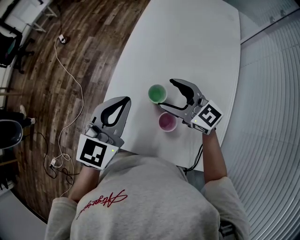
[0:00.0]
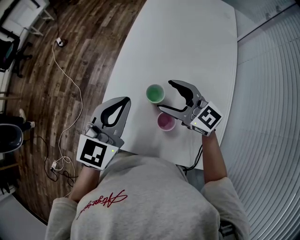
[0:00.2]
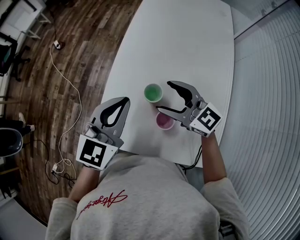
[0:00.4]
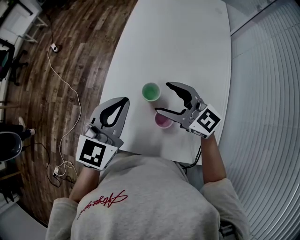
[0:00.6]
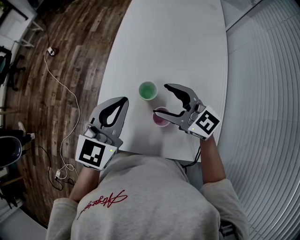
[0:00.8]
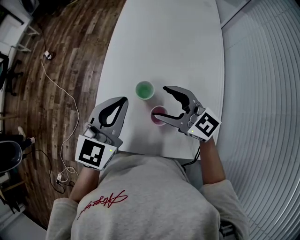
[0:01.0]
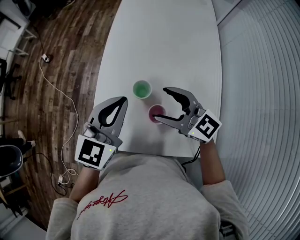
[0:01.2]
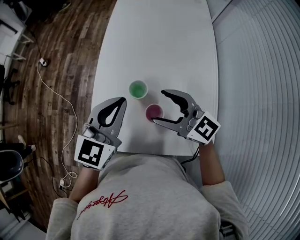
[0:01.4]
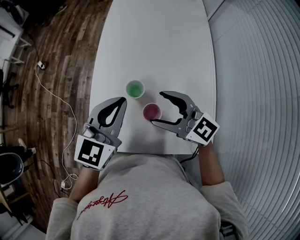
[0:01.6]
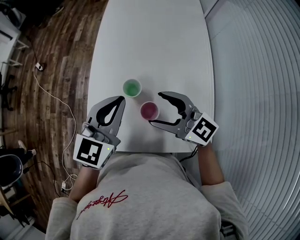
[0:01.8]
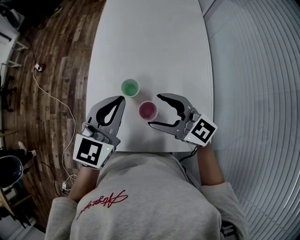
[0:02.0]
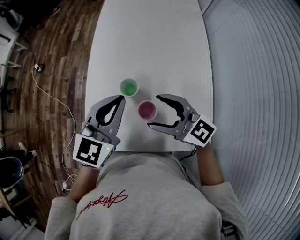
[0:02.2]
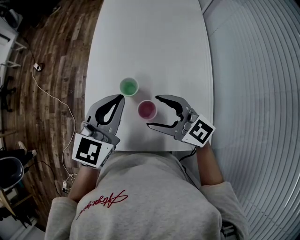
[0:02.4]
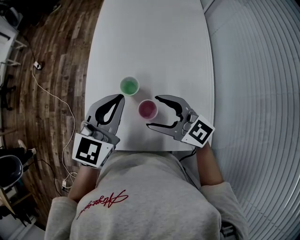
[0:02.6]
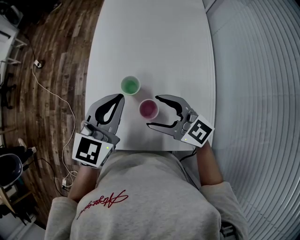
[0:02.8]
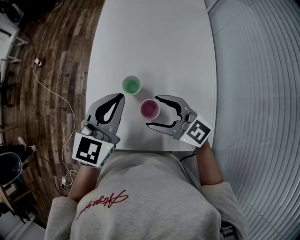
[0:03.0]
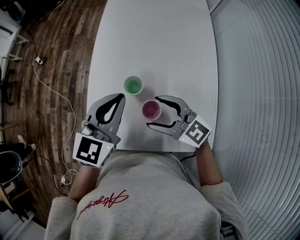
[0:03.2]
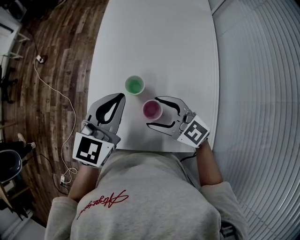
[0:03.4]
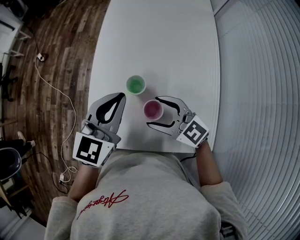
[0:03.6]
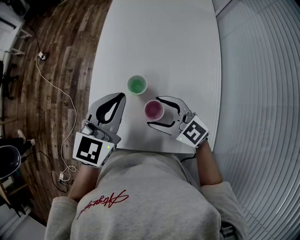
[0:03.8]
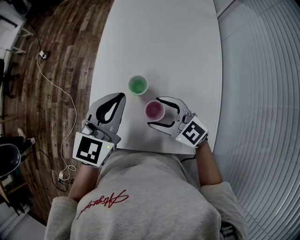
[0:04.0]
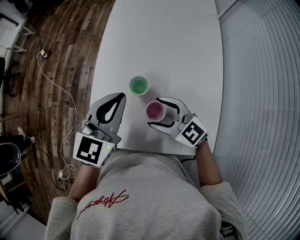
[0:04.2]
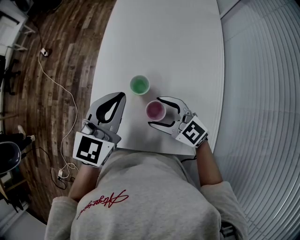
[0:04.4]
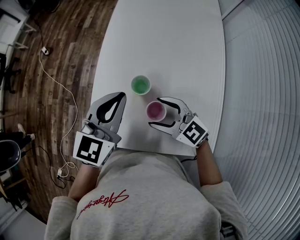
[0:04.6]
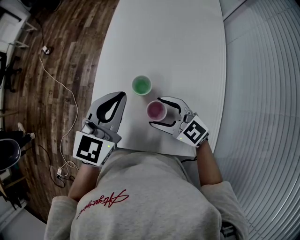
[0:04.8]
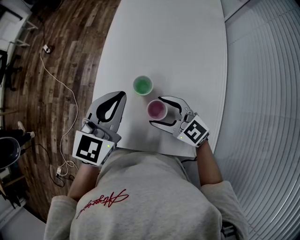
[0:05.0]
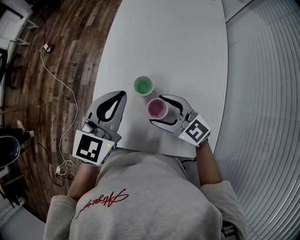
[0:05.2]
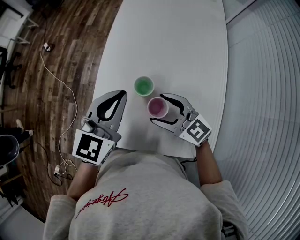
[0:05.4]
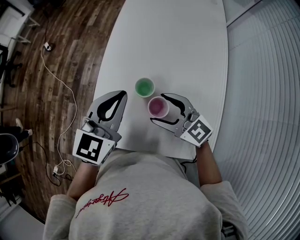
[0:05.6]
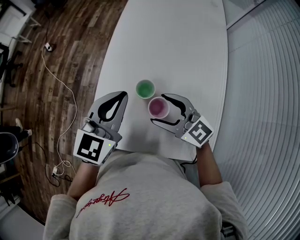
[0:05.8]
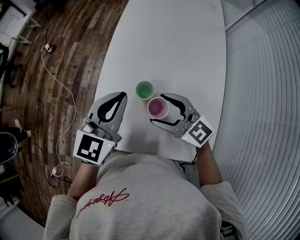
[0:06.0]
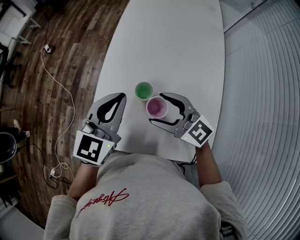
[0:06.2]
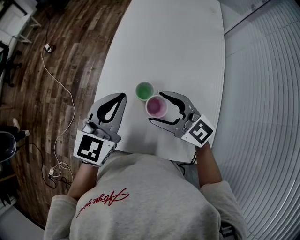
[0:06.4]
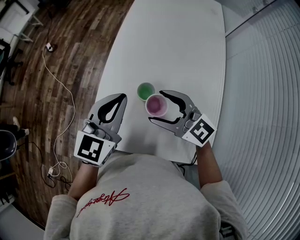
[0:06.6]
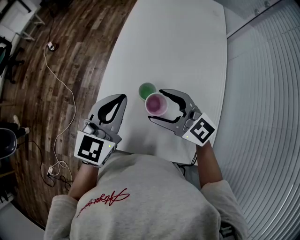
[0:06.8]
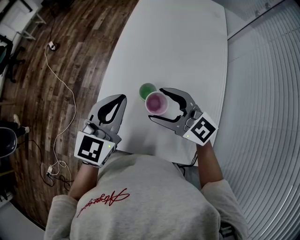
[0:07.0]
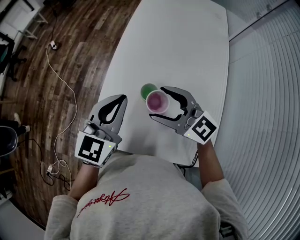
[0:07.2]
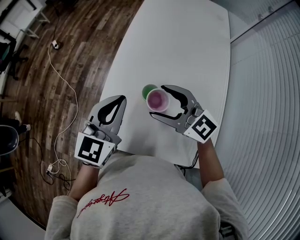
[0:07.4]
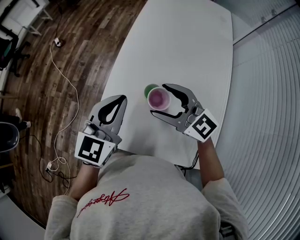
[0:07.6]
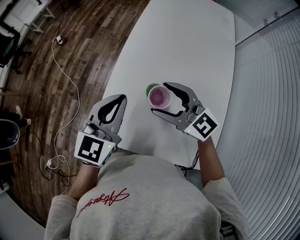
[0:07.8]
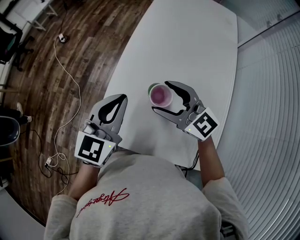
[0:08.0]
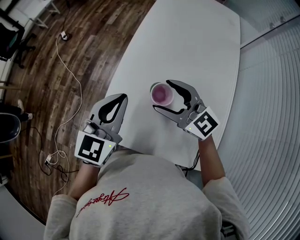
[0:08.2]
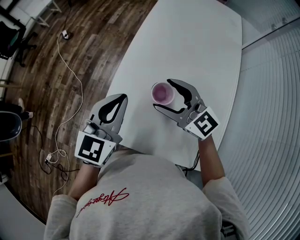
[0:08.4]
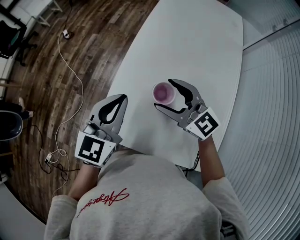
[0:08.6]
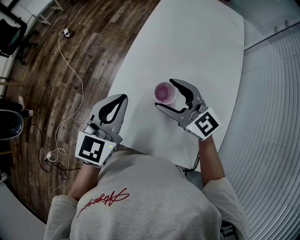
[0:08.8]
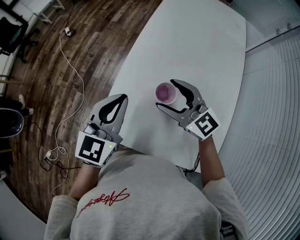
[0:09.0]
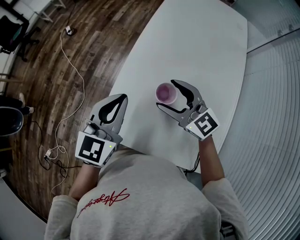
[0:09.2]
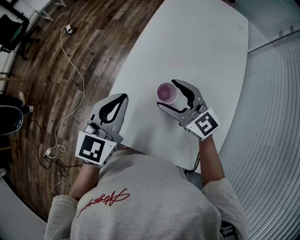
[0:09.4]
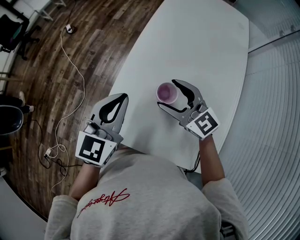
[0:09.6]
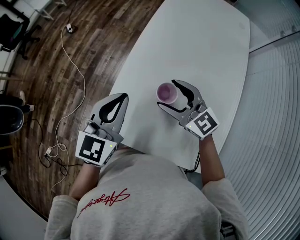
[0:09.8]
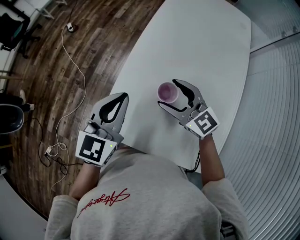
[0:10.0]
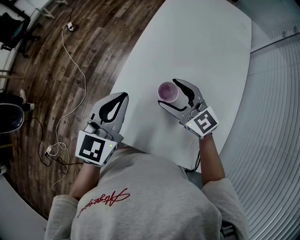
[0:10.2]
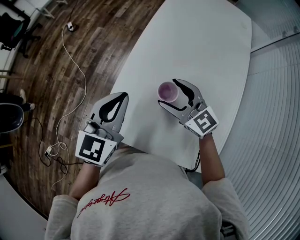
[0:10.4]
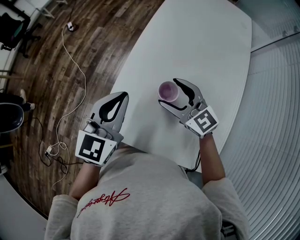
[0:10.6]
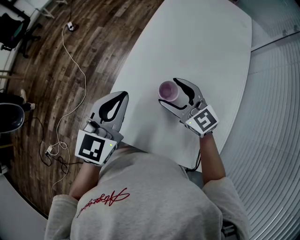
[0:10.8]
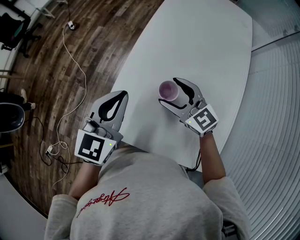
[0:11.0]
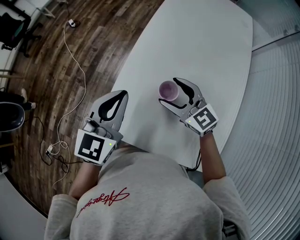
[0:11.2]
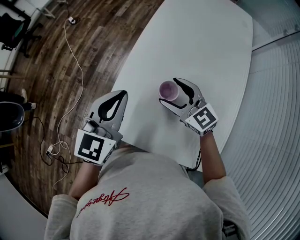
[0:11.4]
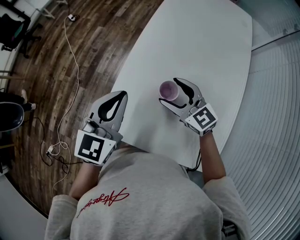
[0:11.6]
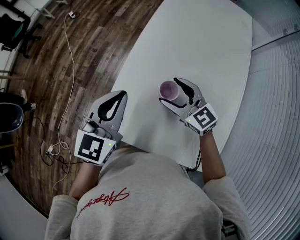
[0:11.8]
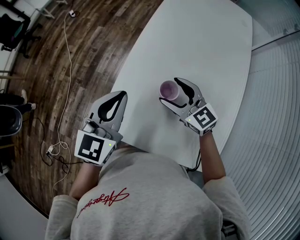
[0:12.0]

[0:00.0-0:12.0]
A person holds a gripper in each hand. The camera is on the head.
0:00.0 to 0:01.6: The left gripper shifts by some 5 cm. Meanwhile the right gripper moves backward, about 10 cm.
0:01.6 to 0:03.0: The grippers move only a little.
0:03.0 to 0:04.4: The right gripper ends up some 5 cm from where it was.
0:04.4 to 0:06.0: The right gripper is displaced upward by roughly 5 cm.
0:06.0 to 0:07.6: The right gripper heads upward, covering some 5 cm.
0:07.6 to 0:09.0: The grippers stay close to where they were, moving slightly.
0:09.0 to 0:10.4: There are only small adjustments of the grippers.
0:10.4 to 0:12.0: The grippers make only small movements.

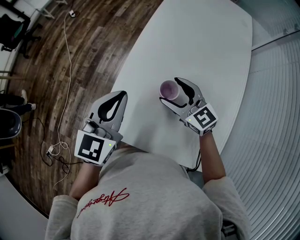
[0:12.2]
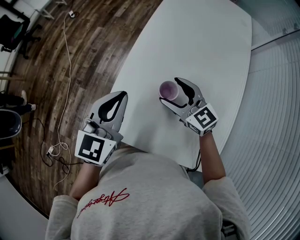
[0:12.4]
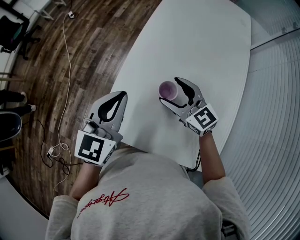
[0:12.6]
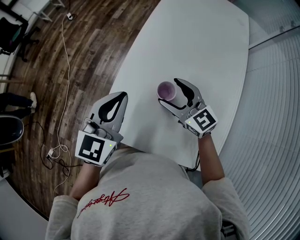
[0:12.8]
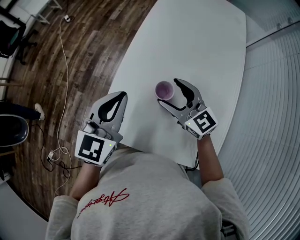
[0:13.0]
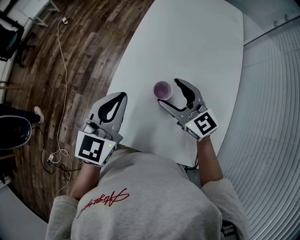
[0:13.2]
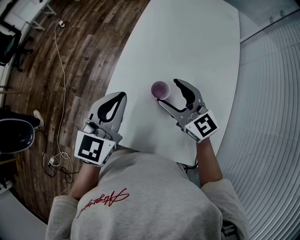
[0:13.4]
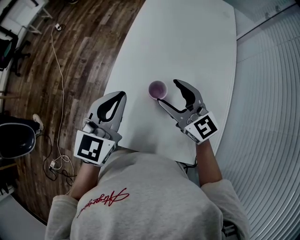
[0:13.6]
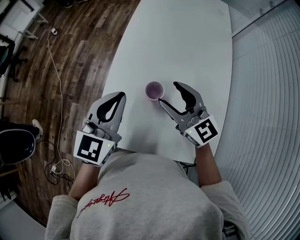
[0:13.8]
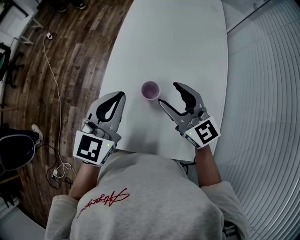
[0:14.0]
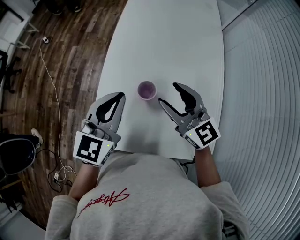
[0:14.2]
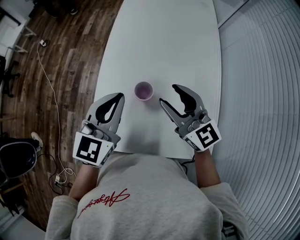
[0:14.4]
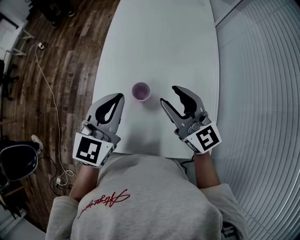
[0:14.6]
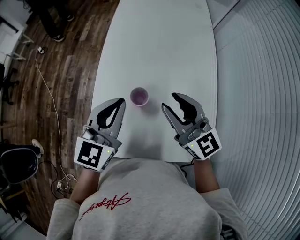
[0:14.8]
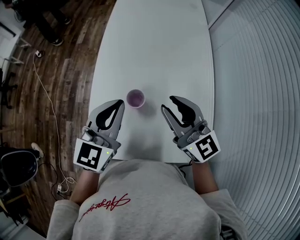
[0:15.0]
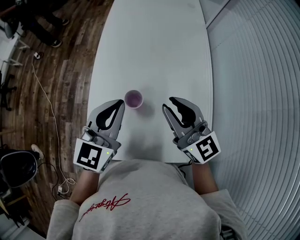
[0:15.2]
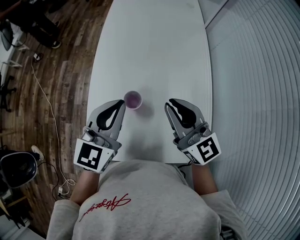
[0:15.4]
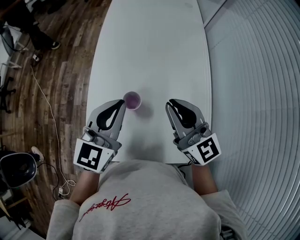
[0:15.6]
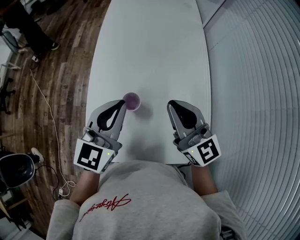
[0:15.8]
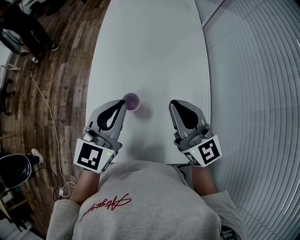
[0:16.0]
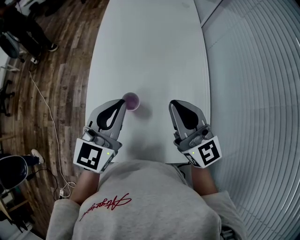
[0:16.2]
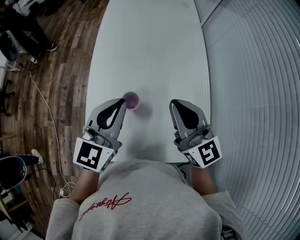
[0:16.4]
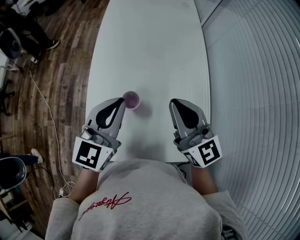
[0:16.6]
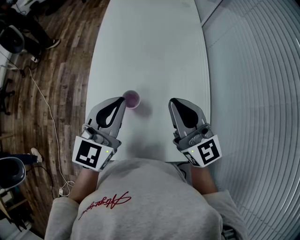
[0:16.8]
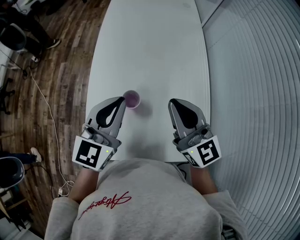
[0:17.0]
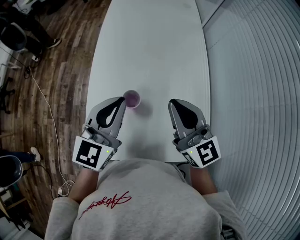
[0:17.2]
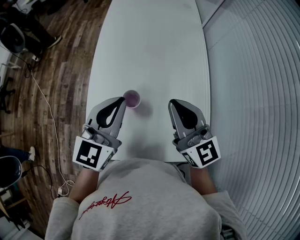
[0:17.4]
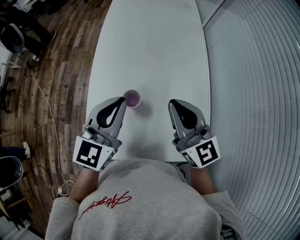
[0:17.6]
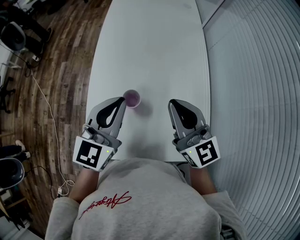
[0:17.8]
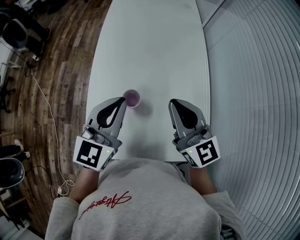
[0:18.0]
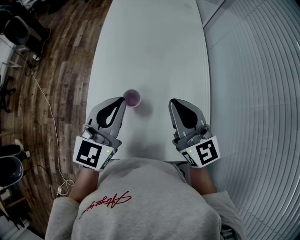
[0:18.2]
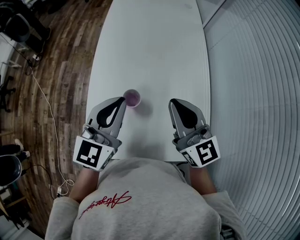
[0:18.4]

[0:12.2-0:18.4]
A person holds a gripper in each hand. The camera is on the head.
0:12.2 to 0:13.8: The right gripper shifts about 5 cm upward.
0:13.8 to 0:15.4: The left gripper is displaced to the right by approximately 5 cm; the right gripper heads to the right and upward, covering roughly 10 cm, and closes its fingers.
0:15.4 to 0:16.8: The grippers move only a little.
0:16.8 to 0:18.4: Both grippers stay about where they are.

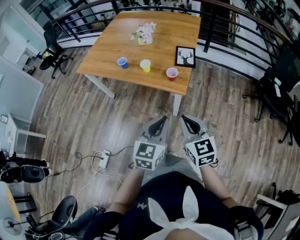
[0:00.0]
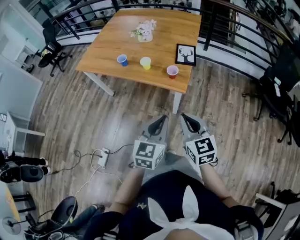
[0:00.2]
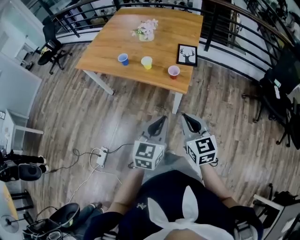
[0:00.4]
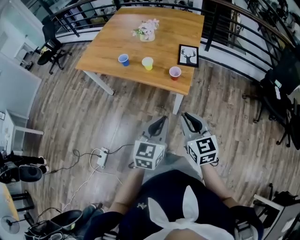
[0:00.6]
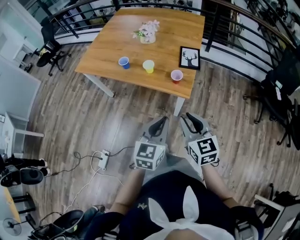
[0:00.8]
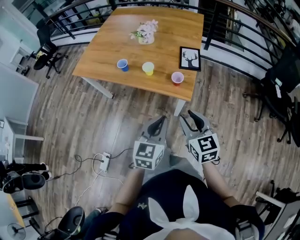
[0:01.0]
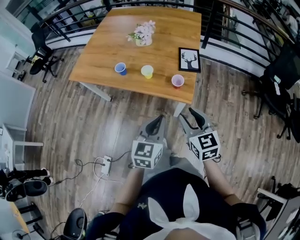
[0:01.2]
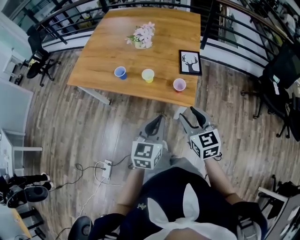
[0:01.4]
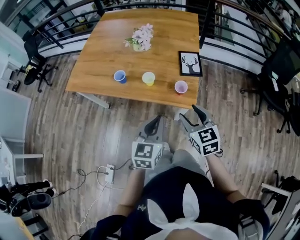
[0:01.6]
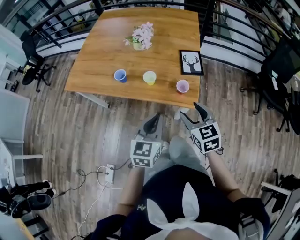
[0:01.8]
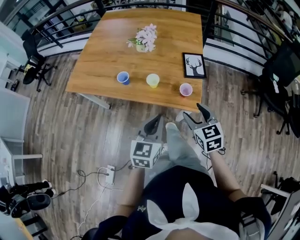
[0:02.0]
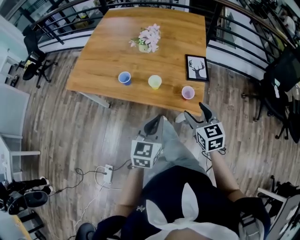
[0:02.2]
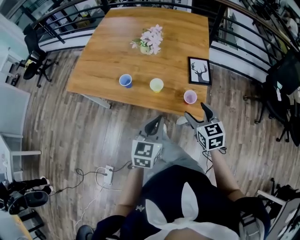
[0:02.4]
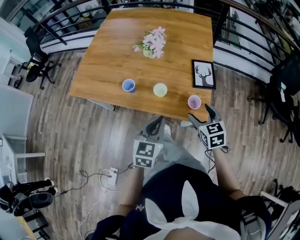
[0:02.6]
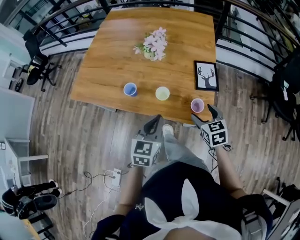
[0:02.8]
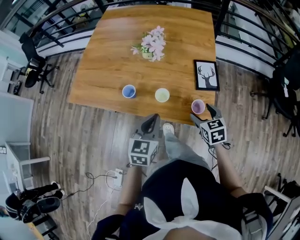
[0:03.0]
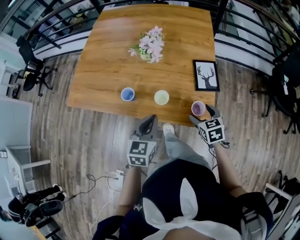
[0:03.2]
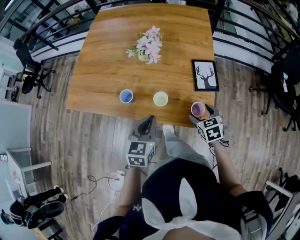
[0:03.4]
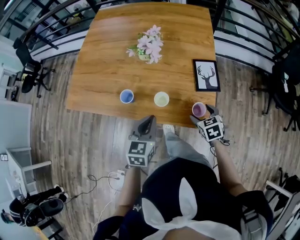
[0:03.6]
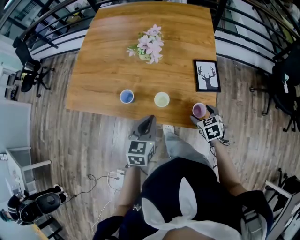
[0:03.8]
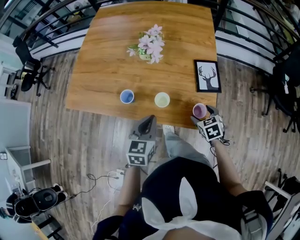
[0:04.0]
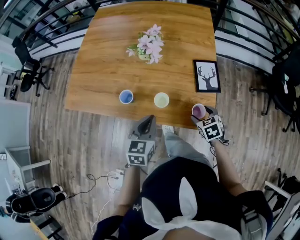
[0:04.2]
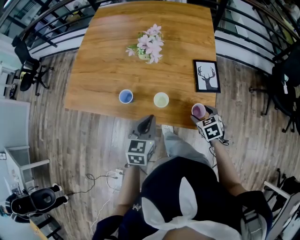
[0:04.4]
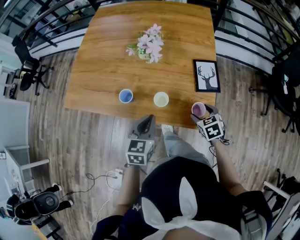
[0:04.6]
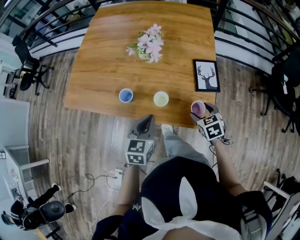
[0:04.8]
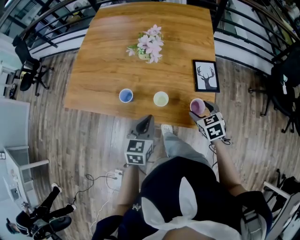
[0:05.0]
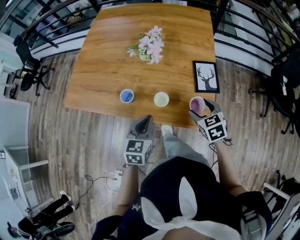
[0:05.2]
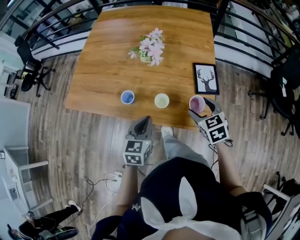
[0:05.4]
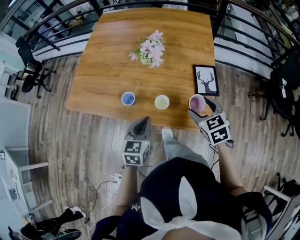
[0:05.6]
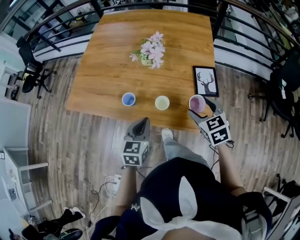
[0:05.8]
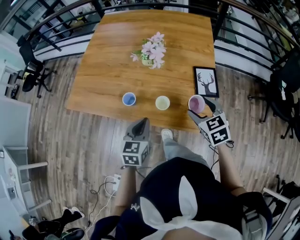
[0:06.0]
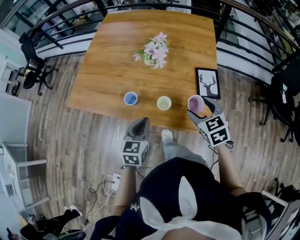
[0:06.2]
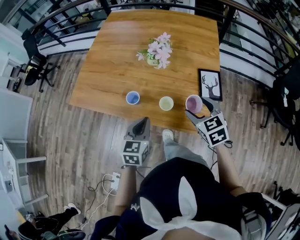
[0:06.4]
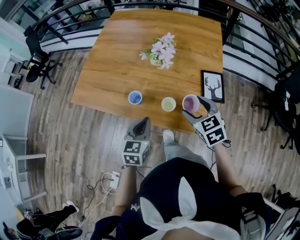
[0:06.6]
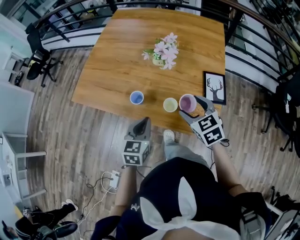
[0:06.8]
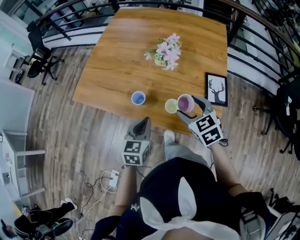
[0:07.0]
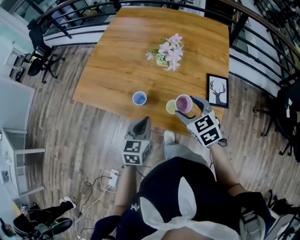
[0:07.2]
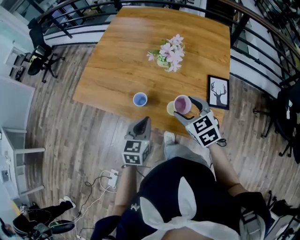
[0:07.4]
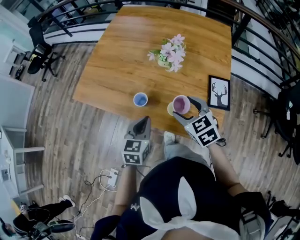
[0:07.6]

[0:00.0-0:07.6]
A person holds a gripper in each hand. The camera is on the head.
0:00.0 to 0:01.6: The right gripper is displaced forward by roughly 20 cm, and opens up. The left gripper shifts about 20 cm forward and to the left.
0:01.6 to 0:03.0: The left gripper travels forward and to the left by roughly 20 cm. The right gripper goes approximately 20 cm forward and downward.
0:03.0 to 0:04.6: The right gripper moves downward, roughly 5 cm, while the left gripper moves roughly 5 cm.
0:04.6 to 0:06.0: The right gripper shifts some 15 cm upward.
0:06.0 to 0:07.6: The right gripper moves to the left and forward, about 15 cm, while the left gripper shifts by roughly 5 cm.
